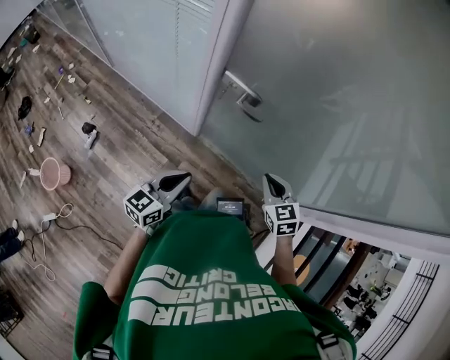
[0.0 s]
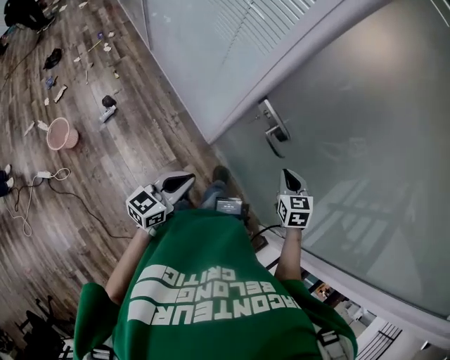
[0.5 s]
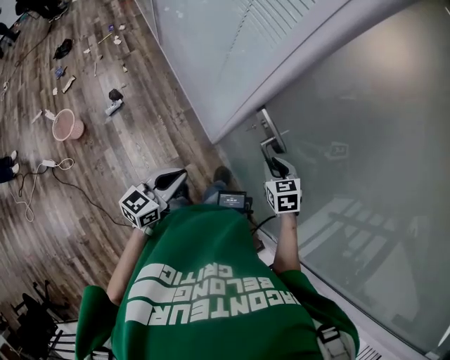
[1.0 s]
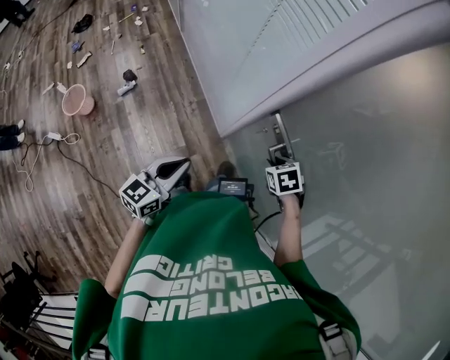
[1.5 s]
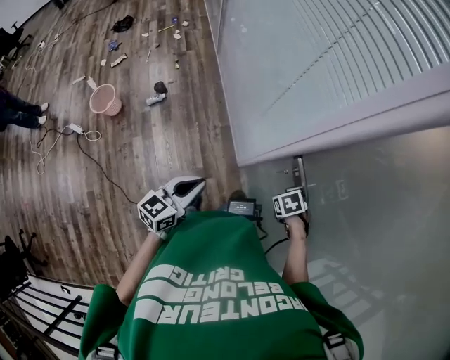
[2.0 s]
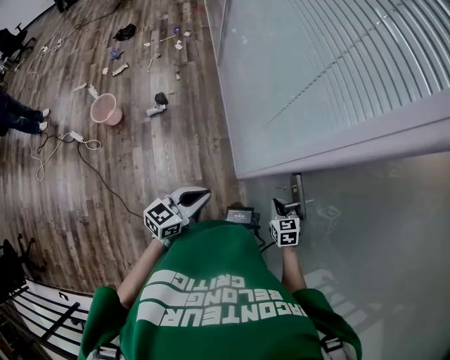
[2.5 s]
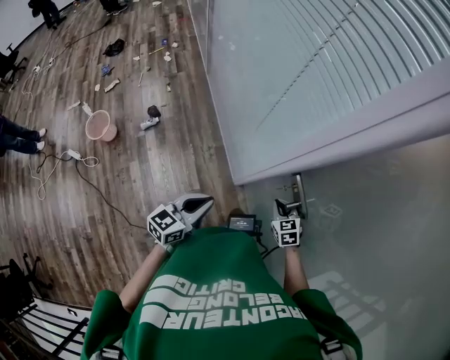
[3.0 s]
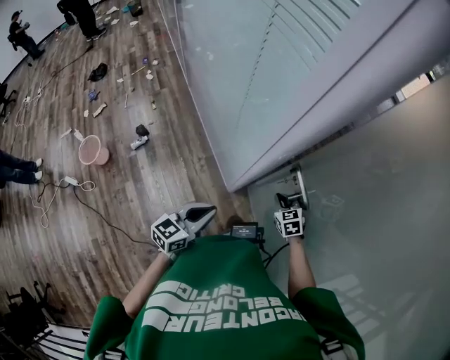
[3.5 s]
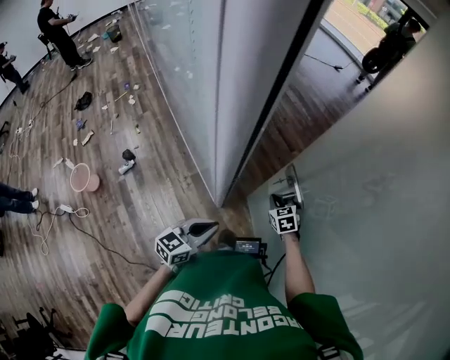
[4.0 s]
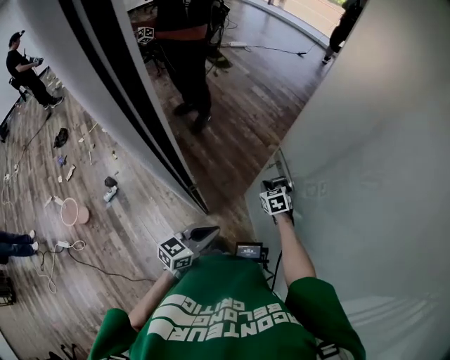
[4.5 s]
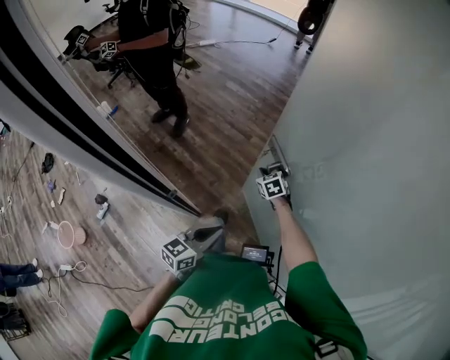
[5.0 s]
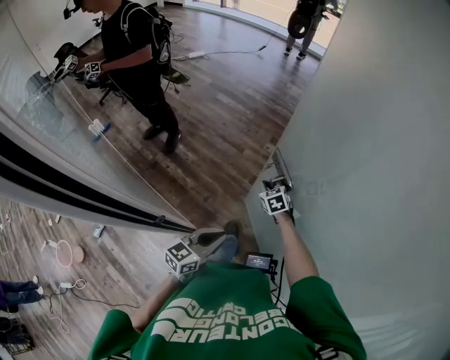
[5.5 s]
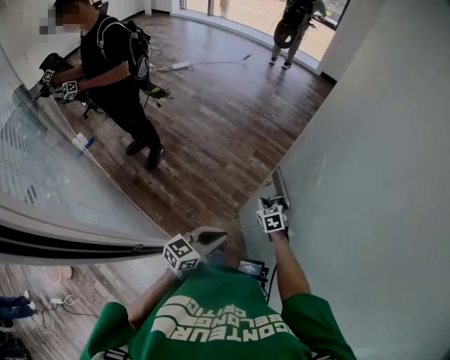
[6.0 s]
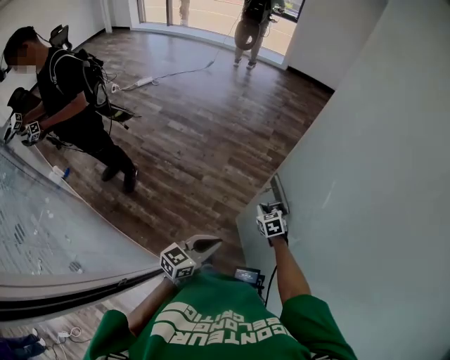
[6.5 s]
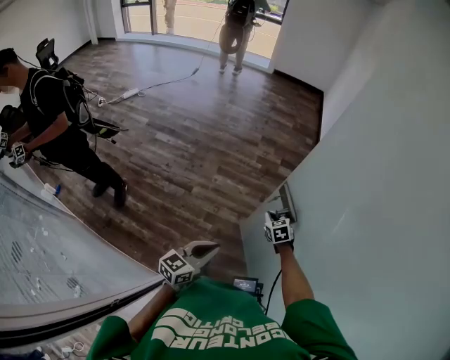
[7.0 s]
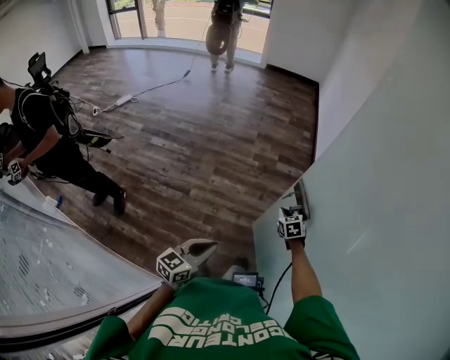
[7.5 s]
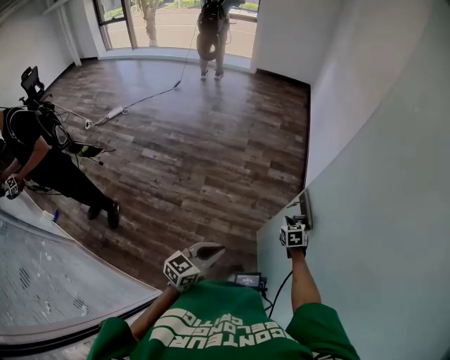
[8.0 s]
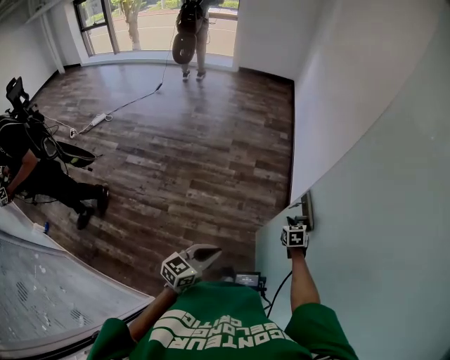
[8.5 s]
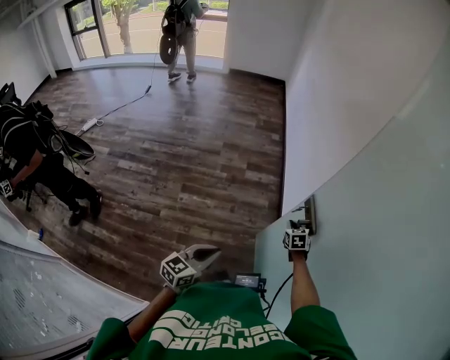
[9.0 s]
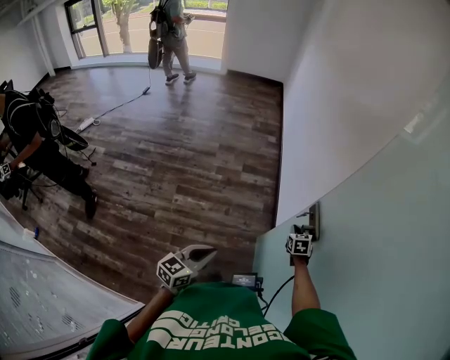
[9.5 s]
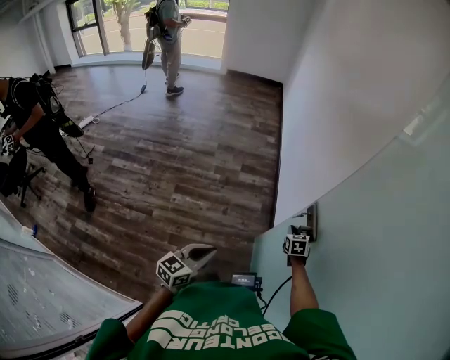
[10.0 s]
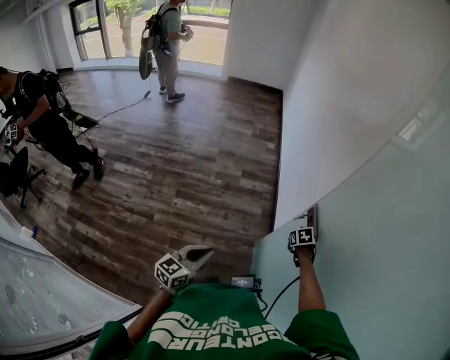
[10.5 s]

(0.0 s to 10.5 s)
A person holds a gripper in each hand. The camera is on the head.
0.0 s - 2.0 s: The left gripper changes place by some 10 cm, and swivels some 40 degrees; the right gripper shifts by approximately 25 cm, and angles its fingers downward, by roughly 50 degrees.
2.0 s - 4.0 s: The left gripper shifts by approximately 20 cm, and turns by approximately 20 degrees; the right gripper ends up roughly 20 cm from where it was, and angles its fingers upward, by roughly 40 degrees.
4.0 s - 6.5 s: The two grippers travel together, some 40 cm. The left gripper turns by about 40 degrees; the right gripper swivels about 30 degrees.
6.5 s - 8.5 s: The left gripper travels forward and to the right by some 20 cm, while the right gripper heads to the right and forward, covering approximately 35 cm, and swivels approximately 30 degrees.
8.5 s - 10.5 s: The left gripper travels forward by some 5 cm. The right gripper shifts roughly 10 cm to the right, and changes its angle by some 20 degrees.

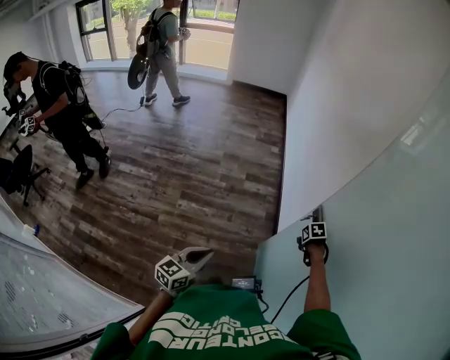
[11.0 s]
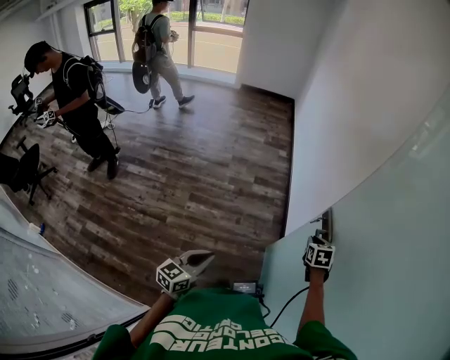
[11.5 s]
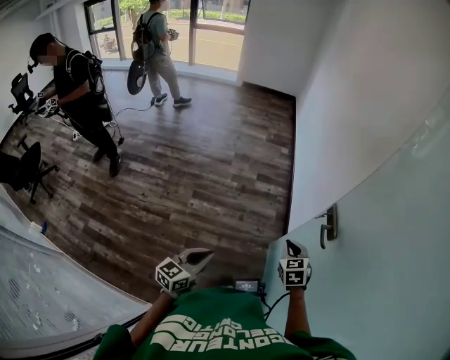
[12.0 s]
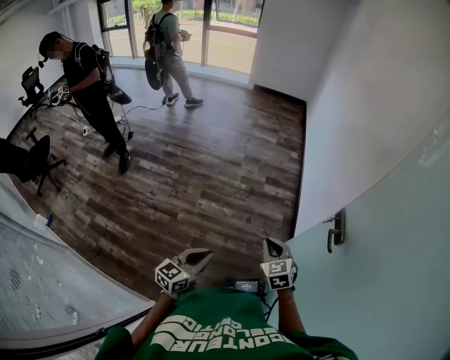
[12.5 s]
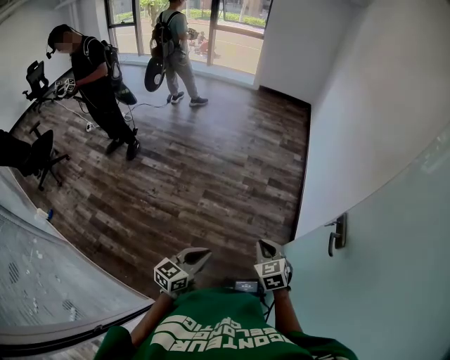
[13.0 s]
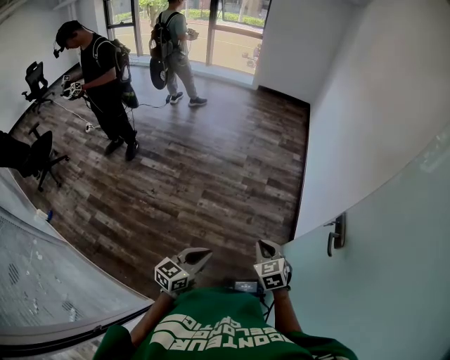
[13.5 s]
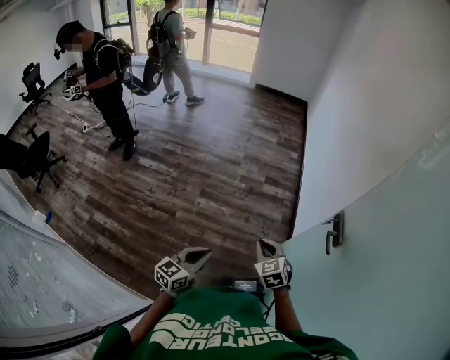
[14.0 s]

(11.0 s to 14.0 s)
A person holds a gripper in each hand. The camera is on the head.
11.0 s - 12.5 s: The left gripper changes place by about 10 cm. Meanwhile the right gripper shifts by approximately 35 cm, and angles its fingers upward, by approximately 40 degrees.
12.5 s - 14.0 s: The grippers make only small movements.

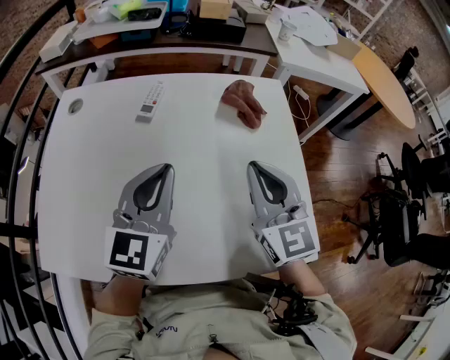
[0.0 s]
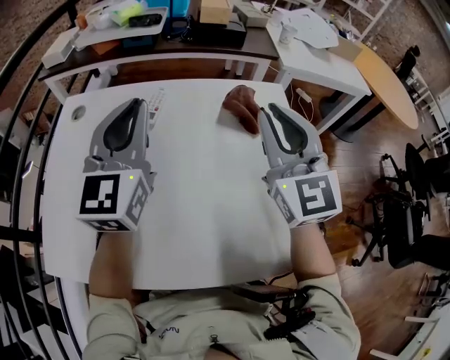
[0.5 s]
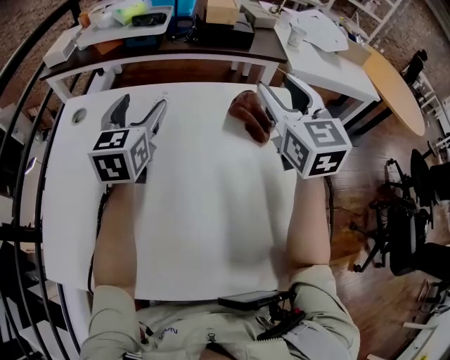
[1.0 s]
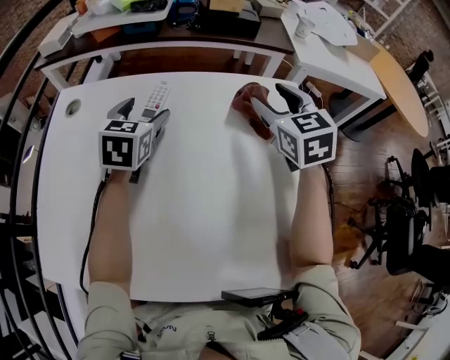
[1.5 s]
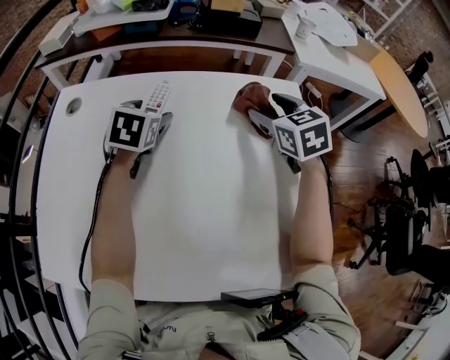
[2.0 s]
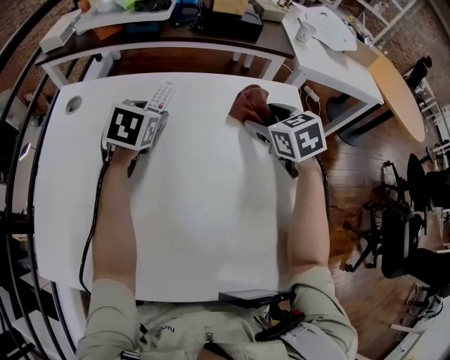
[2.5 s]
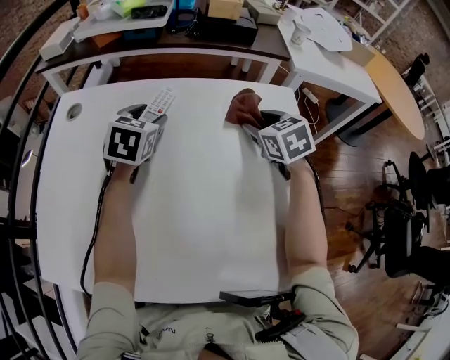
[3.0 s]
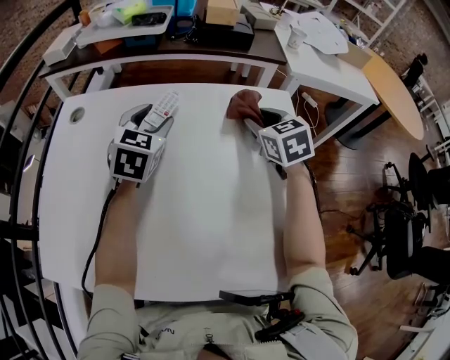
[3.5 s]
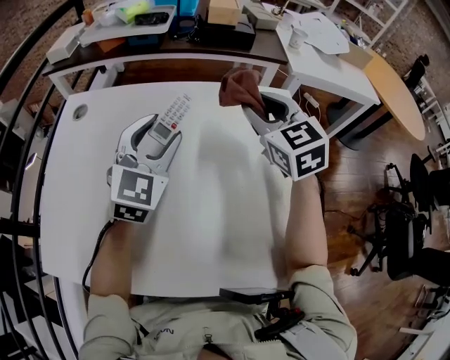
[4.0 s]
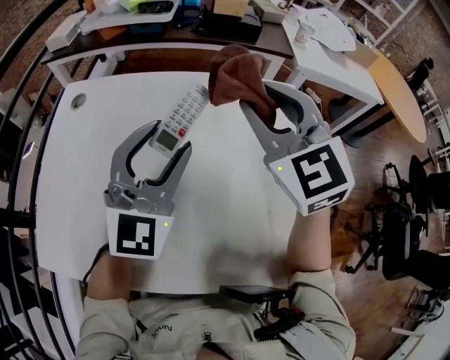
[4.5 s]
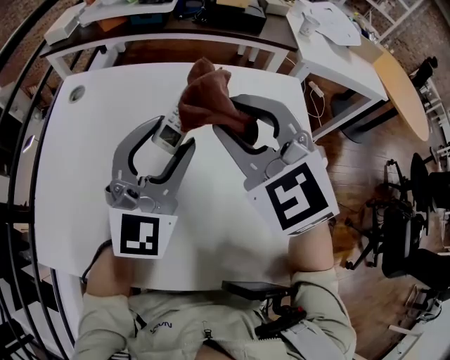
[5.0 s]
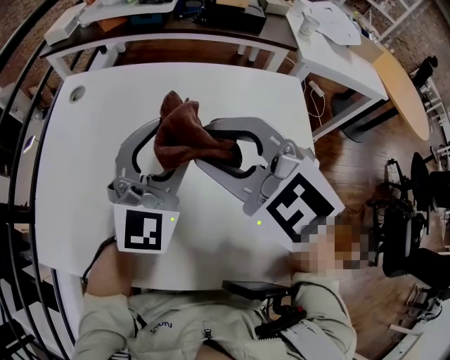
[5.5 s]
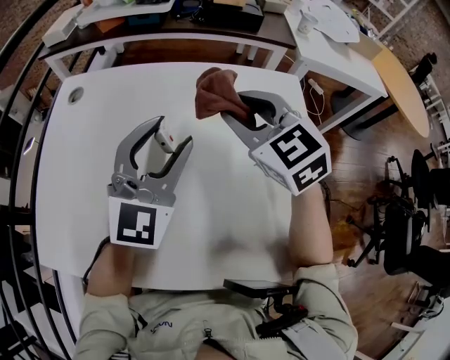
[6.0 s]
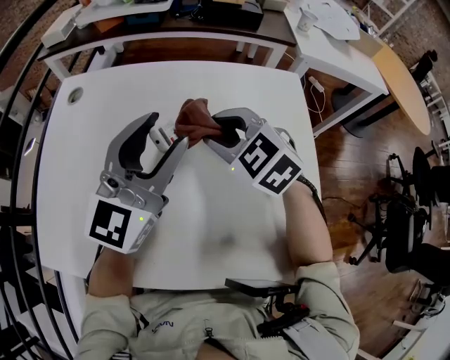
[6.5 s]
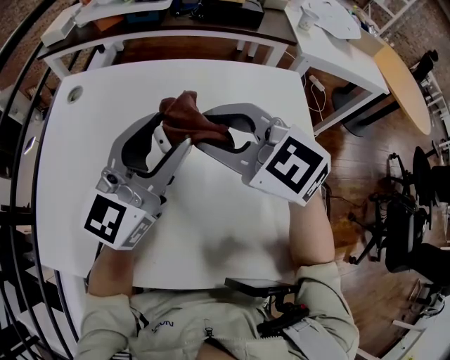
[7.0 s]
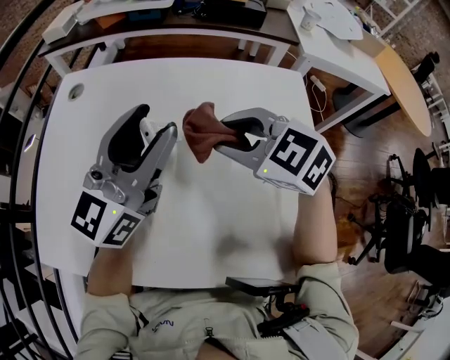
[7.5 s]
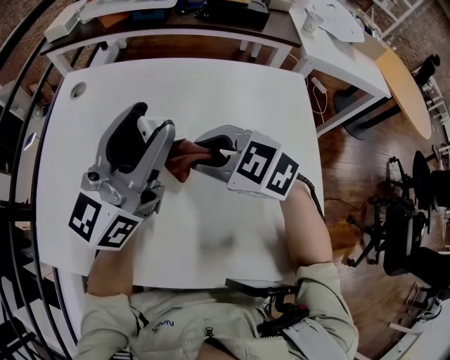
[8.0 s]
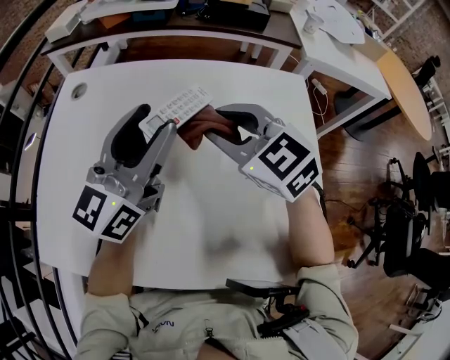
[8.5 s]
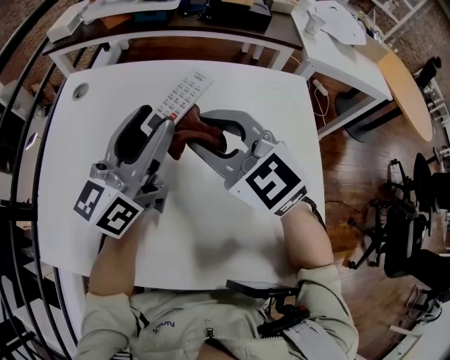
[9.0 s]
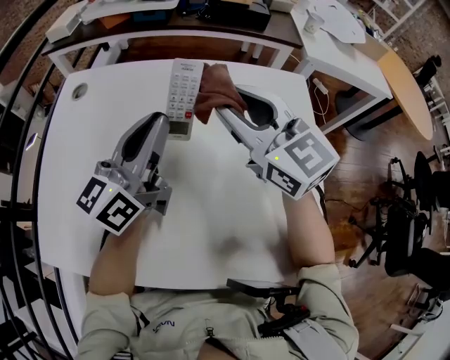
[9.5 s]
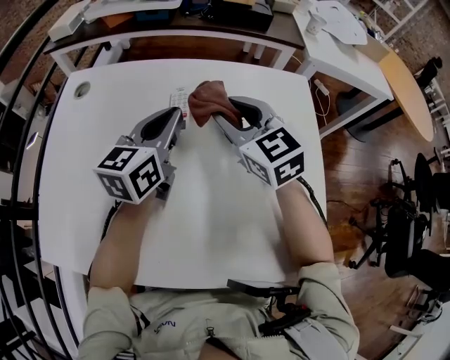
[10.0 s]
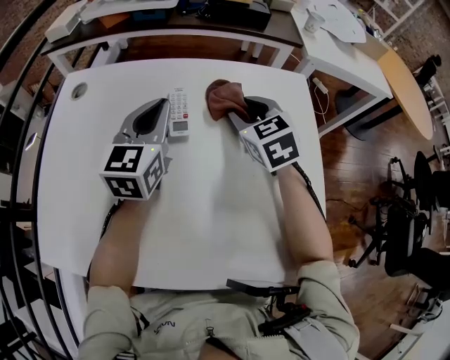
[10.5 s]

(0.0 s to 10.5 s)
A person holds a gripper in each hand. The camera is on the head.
0.0 s - 2.0 s: The right gripper is displaced forward by approximately 20 cm, turns by approximately 30 degrees, and opens its fingers. Meanwhile the left gripper moves forward and downward, about 25 cm, tilts its fingers approximately 40 degrees downward, and opens.
2.0 s - 4.0 s: The right gripper goes about 10 cm upward, and closes up, while the left gripper shifts roughly 15 cm backward, upward and to the right, and swivels about 40 degrees.
4.0 s - 6.5 s: The left gripper goes about 10 cm backward and upward, and changes its angle by approximately 30 degrees. The right gripper shifts approximately 15 cm to the left, downward and backward, and rotates approximately 30 degrees.
6.5 s - 8.5 s: The left gripper rotates approximately 20 degrees; the right gripper moves up and down over approximately 10 cm, changing direction 2 times.
8.5 s - 10.5 s: The right gripper travels to the right, forward and downward by some 15 cm, and rotates approximately 30 degrees. The left gripper moves downward and forward, about 10 cm, turns by about 30 degrees, and closes up.

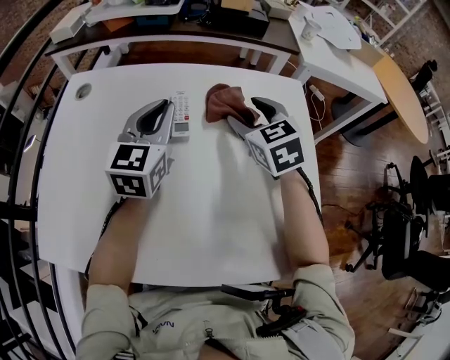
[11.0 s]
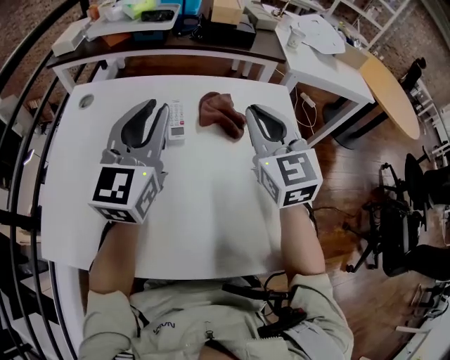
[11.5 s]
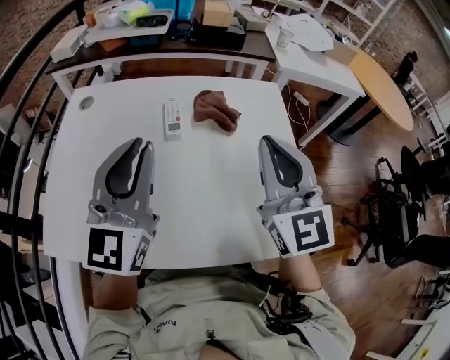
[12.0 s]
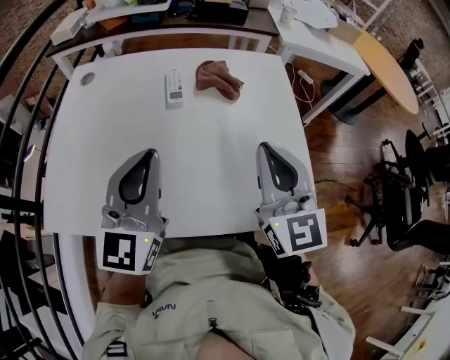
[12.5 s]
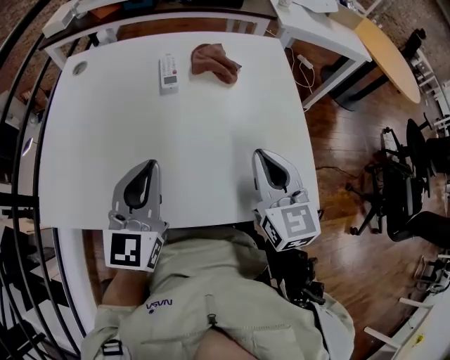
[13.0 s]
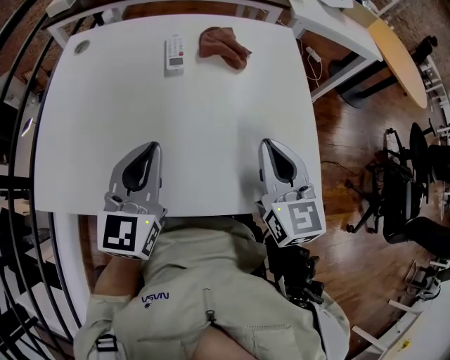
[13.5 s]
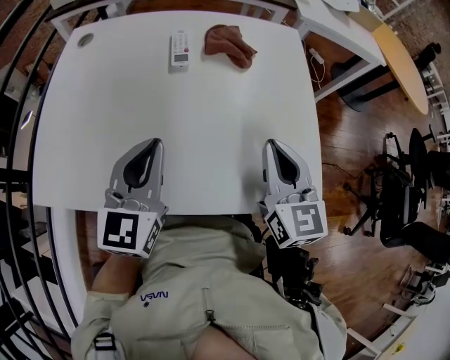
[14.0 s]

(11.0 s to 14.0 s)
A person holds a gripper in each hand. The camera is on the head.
11.0 s - 12.5 s: The left gripper travels backward by approximately 25 cm; the right gripper goes some 25 cm backward and upward, tips its fingers upward by some 30 degrees, and closes up.
12.5 s - 14.0 s: Both grippers travel together downward, some 10 cm.
